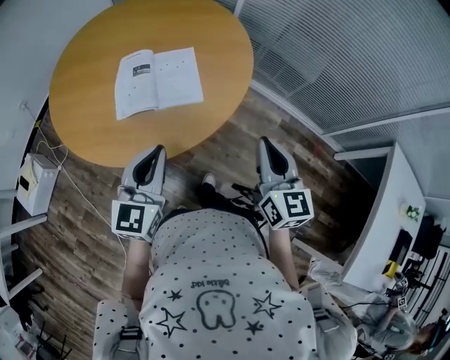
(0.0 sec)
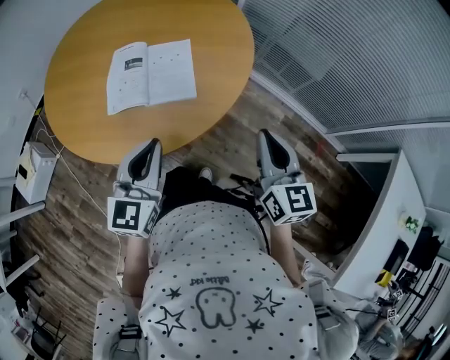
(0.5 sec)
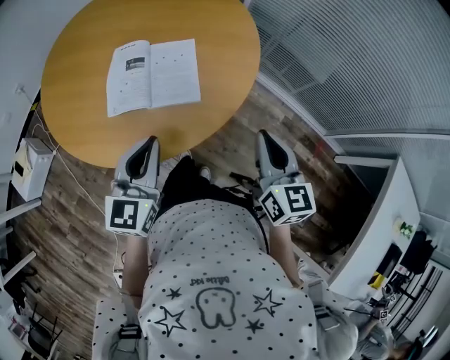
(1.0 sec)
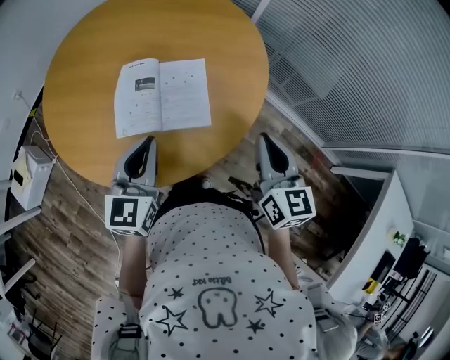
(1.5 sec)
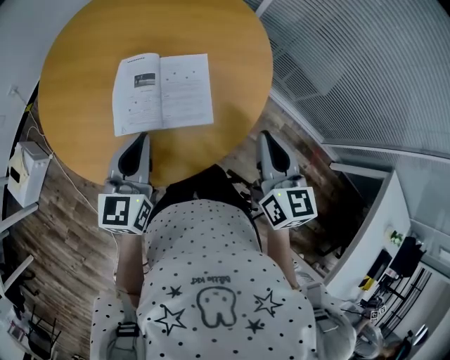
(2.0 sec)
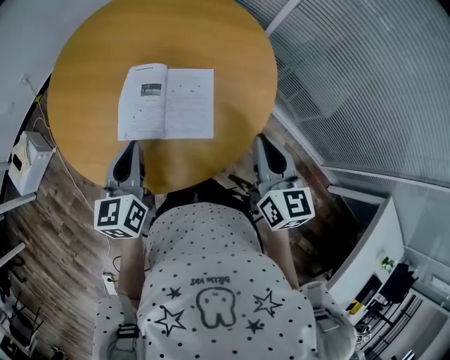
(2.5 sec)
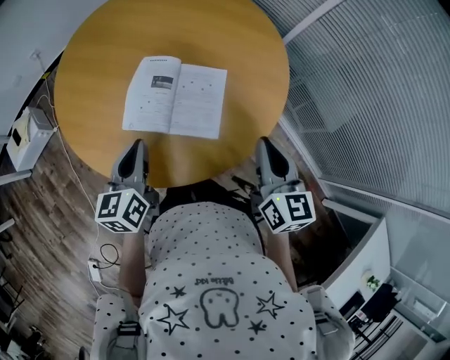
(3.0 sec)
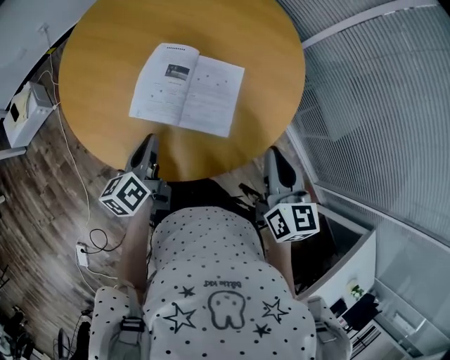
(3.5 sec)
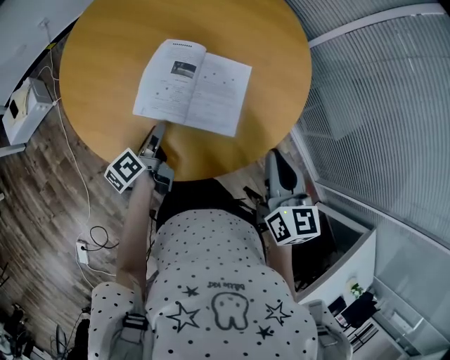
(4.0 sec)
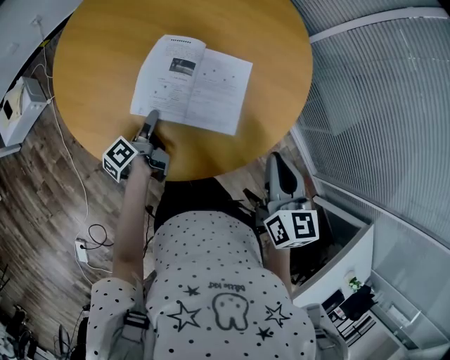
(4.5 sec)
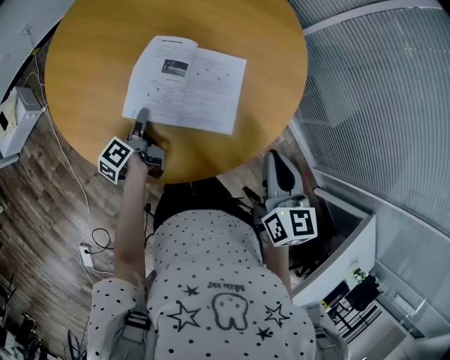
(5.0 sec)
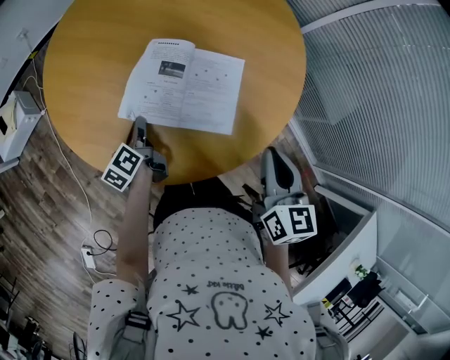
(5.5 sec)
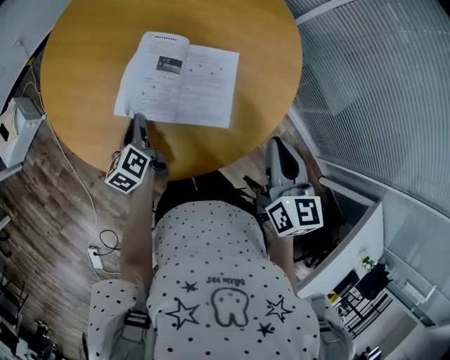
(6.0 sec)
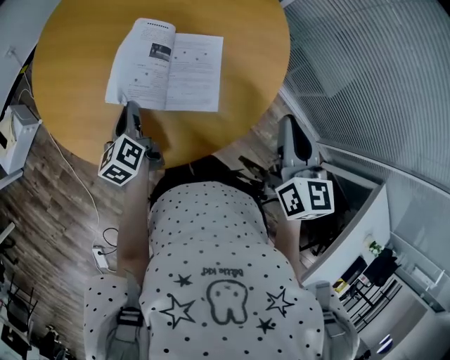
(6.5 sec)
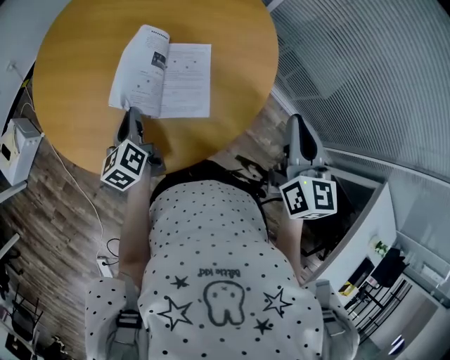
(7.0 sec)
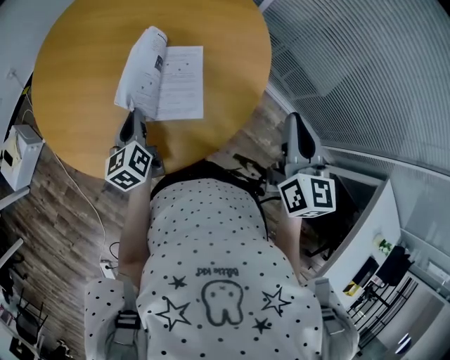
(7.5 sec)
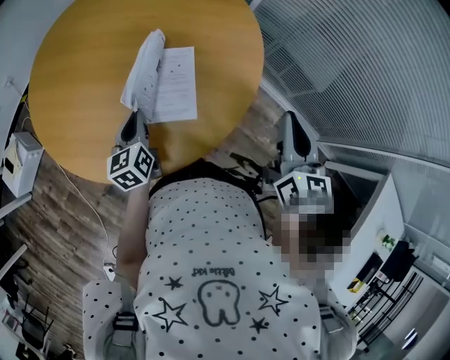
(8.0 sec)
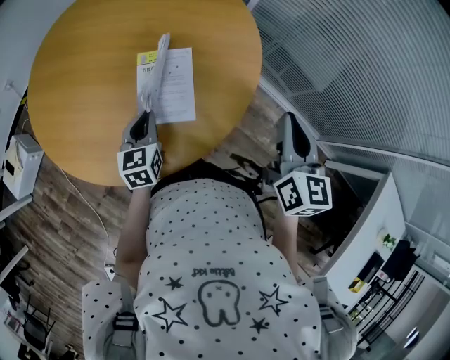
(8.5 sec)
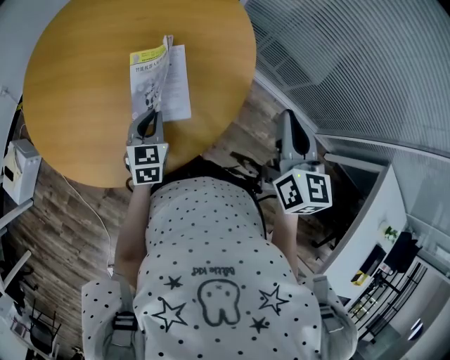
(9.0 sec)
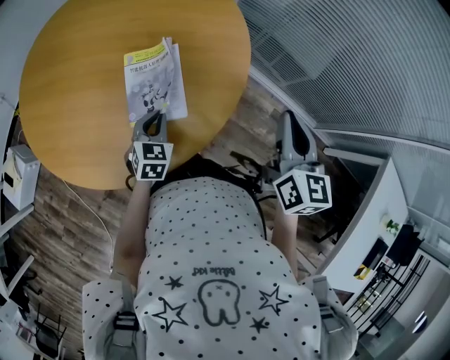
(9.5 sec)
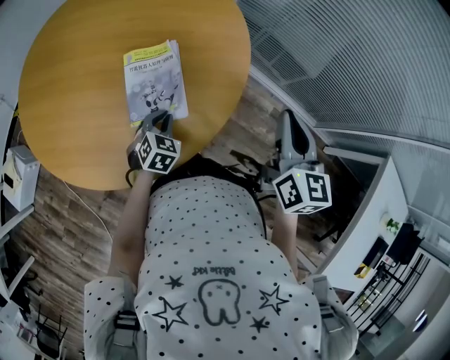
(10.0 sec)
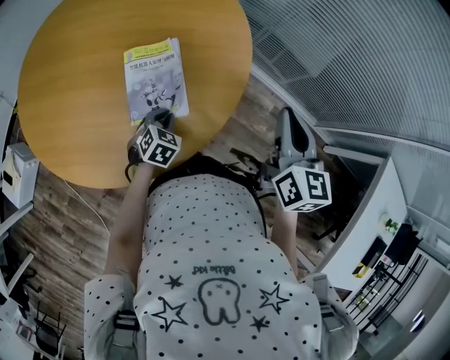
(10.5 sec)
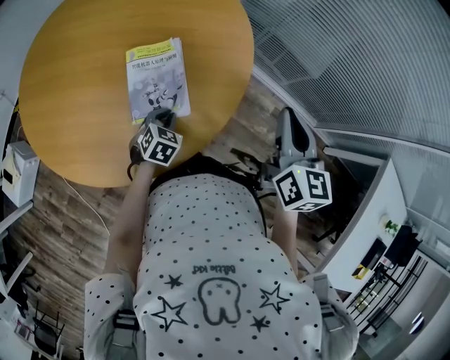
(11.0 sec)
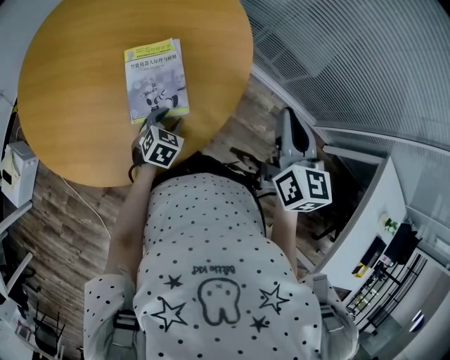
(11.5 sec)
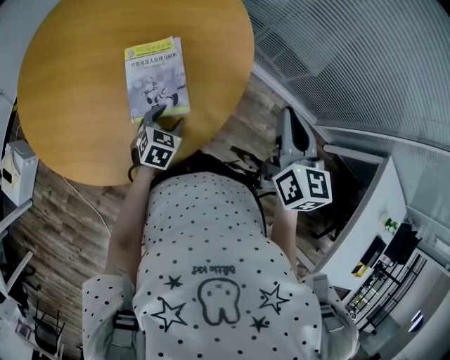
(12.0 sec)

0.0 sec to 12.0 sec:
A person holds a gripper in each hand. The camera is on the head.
0.0 sec to 2.0 sec: The left gripper heads forward and to the left, covering about 15 cm; the right gripper heads forward, covering roughly 15 cm.
2.0 sec to 4.0 sec: The right gripper shifts by about 5 cm, while the left gripper shifts approximately 20 cm downward, rolls counterclockwise, seen from behind, by about 70 degrees, and opens.
4.0 sec to 6.0 sec: The left gripper moves roughly 5 cm, changes its angle by roughly 30 degrees, and closes.
6.0 sec to 8.0 sec: The left gripper moves to the right and upward, roughly 15 cm, and changes its angle by roughly 30 degrees, while the right gripper is displaced to the right by about 15 cm.
8.0 sec to 10.0 sec: The left gripper heads to the right and downward, covering approximately 15 cm, and rotates around the line of its fingers by roughly 50 degrees, clockwise from behind.
10.0 sec to 12.0 sec: The left gripper opens its fingers.

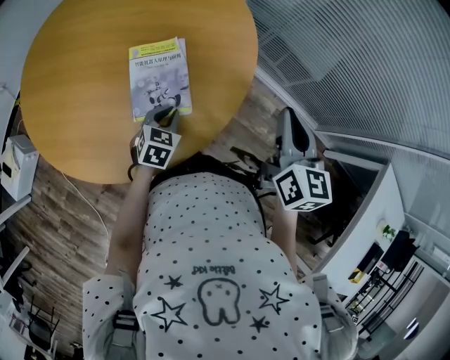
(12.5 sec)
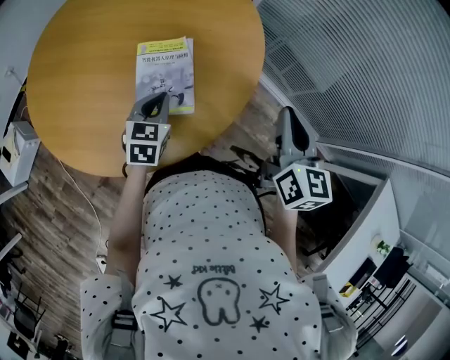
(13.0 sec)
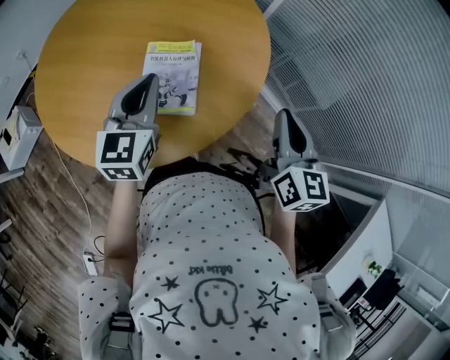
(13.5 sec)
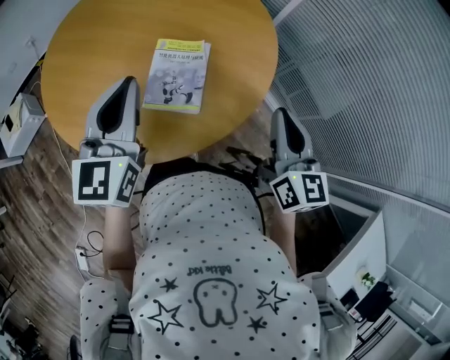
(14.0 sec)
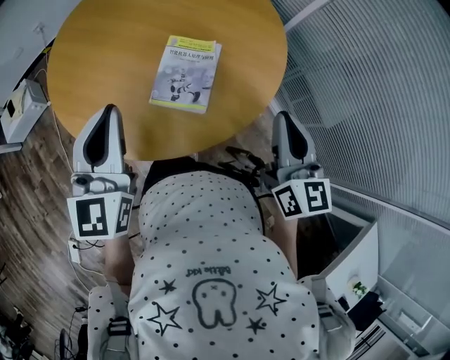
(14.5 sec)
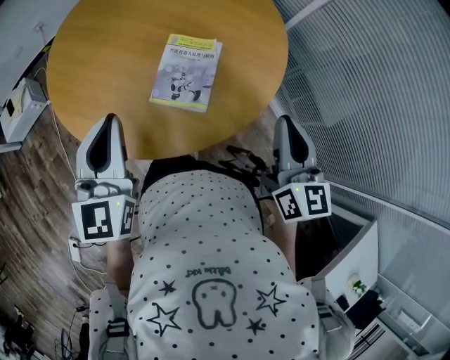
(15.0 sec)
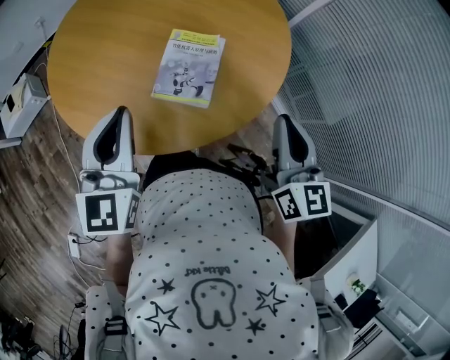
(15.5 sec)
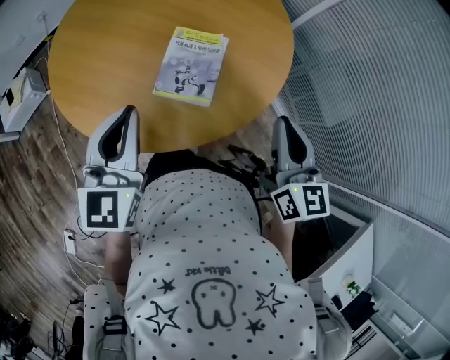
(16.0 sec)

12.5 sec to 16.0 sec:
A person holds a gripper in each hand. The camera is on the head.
12.5 sec to 14.5 sec: The left gripper moves upward, roughly 30 cm, and tilts its fingers some 40 degrees upward, while the right gripper changes place by approximately 10 cm, and swivels about 30 degrees.
14.5 sec to 16.0 sec: The grippers move only a little.
